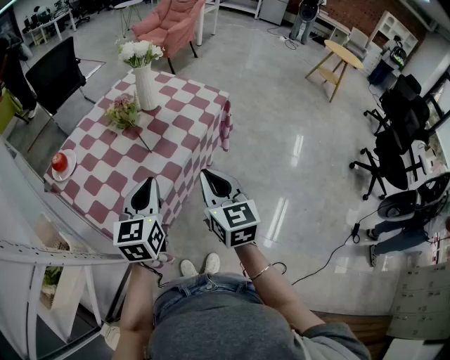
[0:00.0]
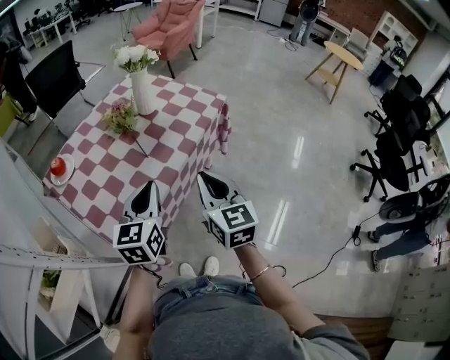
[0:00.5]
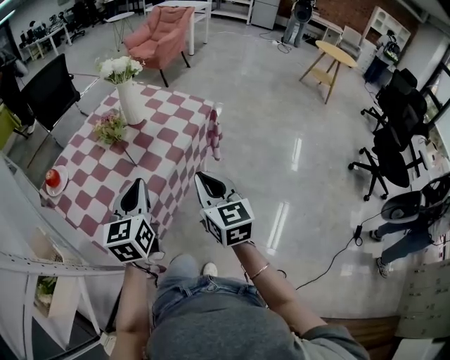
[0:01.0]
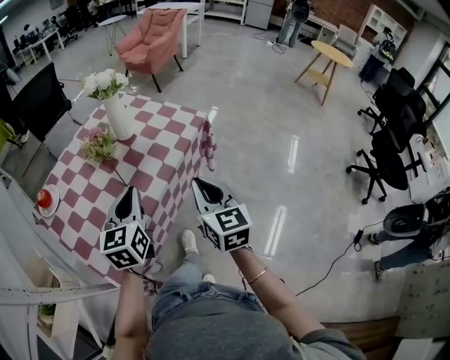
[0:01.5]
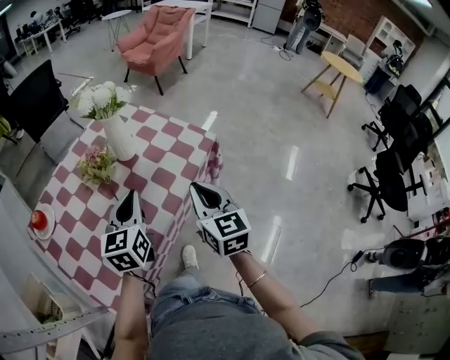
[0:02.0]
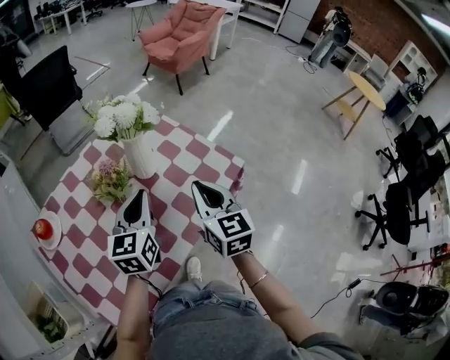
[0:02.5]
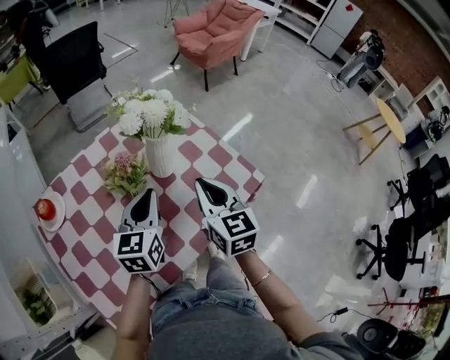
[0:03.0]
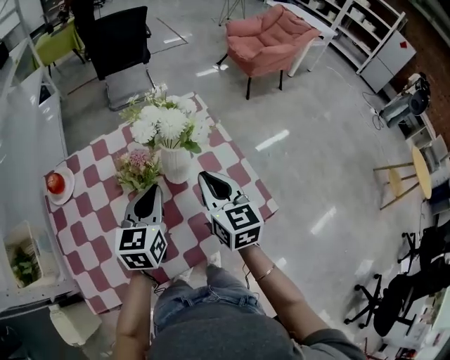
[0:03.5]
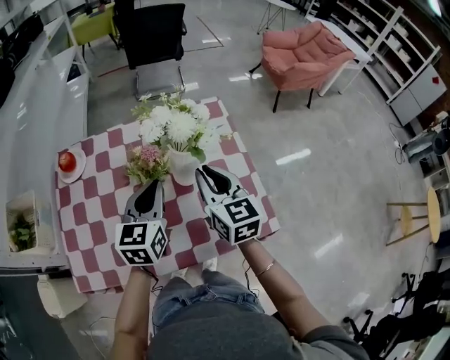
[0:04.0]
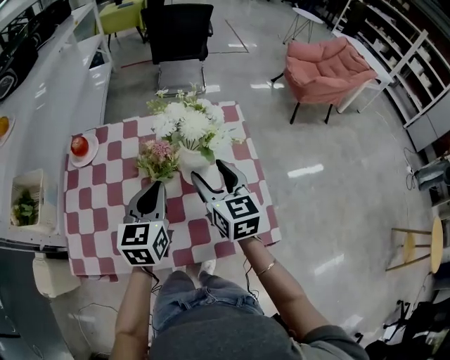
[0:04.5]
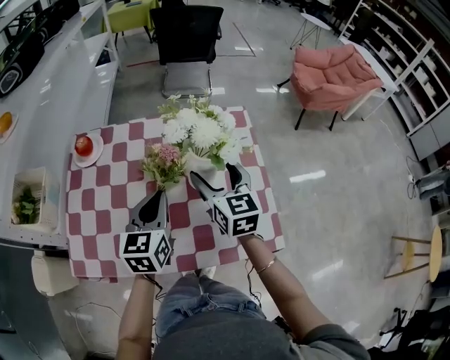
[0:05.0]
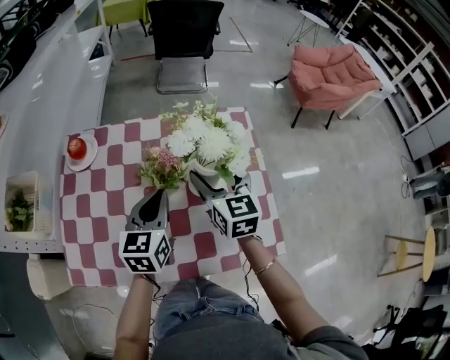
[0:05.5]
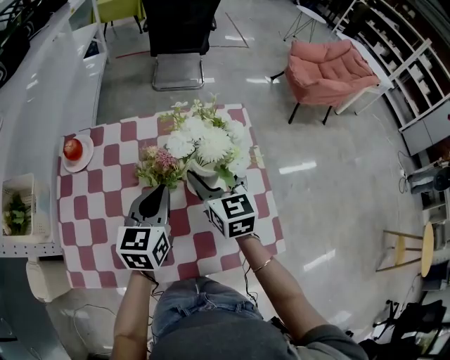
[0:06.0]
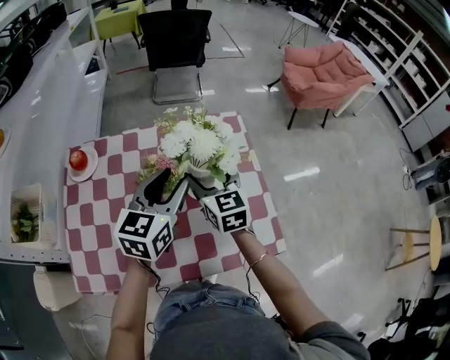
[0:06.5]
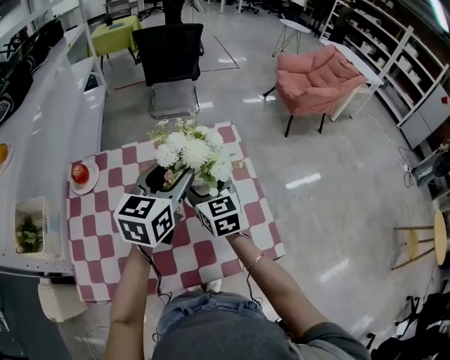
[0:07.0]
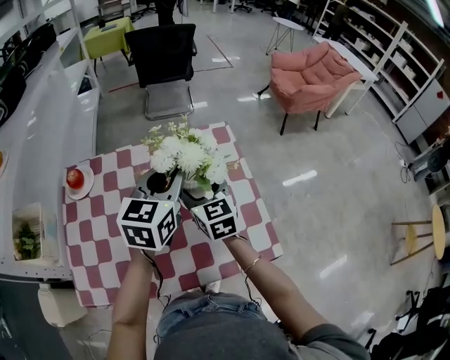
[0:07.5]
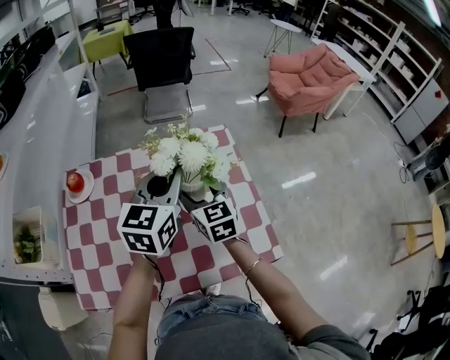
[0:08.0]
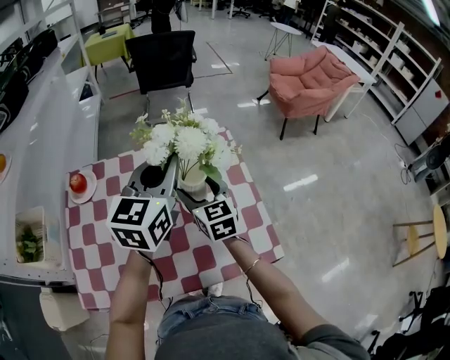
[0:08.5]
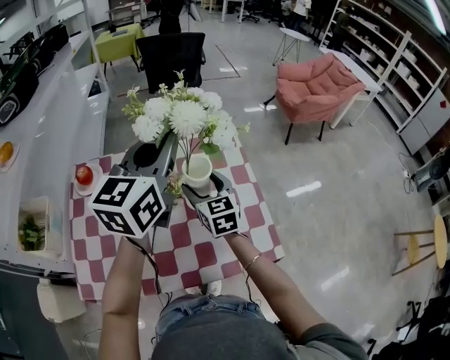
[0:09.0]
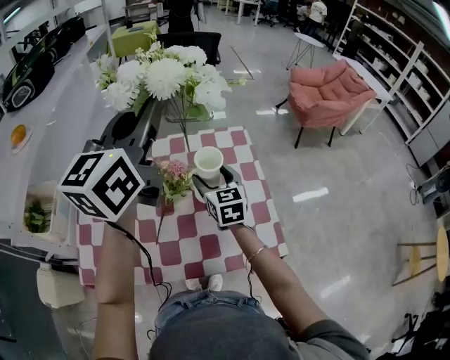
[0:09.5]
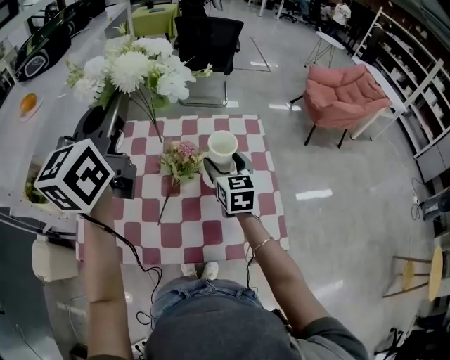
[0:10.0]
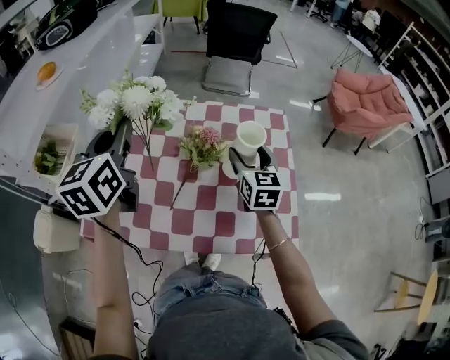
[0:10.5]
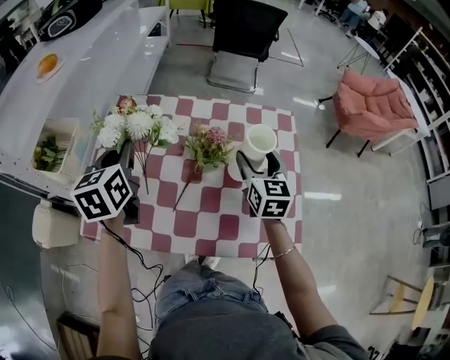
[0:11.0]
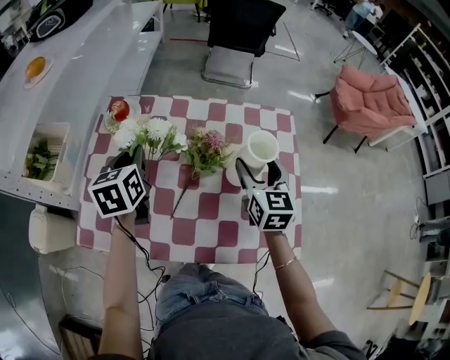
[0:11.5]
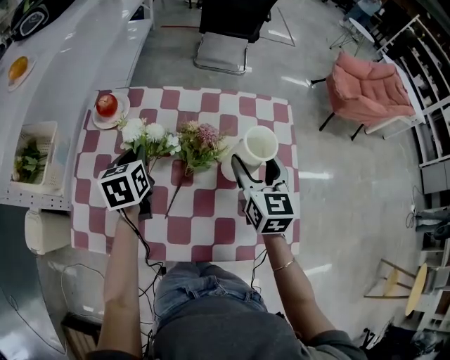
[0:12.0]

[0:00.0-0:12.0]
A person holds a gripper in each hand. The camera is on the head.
0:00.0 to 0:02.0: The two grippers go some 20 cm forward.
0:02.0 to 0:04.0: The left gripper ends up about 20 cm from where it was, and swivels some 30 degrees, while the right gripper shifts by some 30 cm, and rotates about 40 degrees.
0:04.0 to 0:06.0: The right gripper heads forward, covering approximately 10 cm, and opens.
0:06.0 to 0:08.0: The left gripper is displaced upward and to the right by some 15 cm, and opens, then closes once more.
0:08.0 to 0:10.0: The left gripper moves to the left and upward, approximately 25 cm, and changes its angle by about 30 degrees.
0:10.0 to 0:12.0: The left gripper goes some 35 cm downward, and tilts its fingers roughly 40 degrees downward.

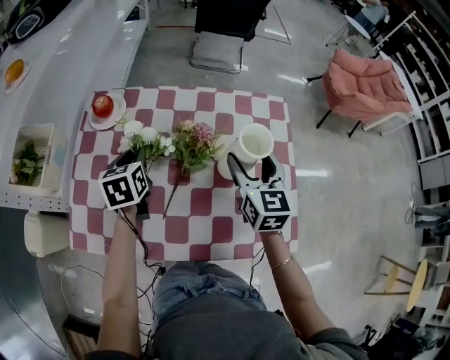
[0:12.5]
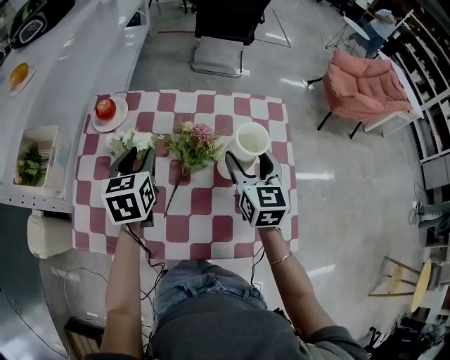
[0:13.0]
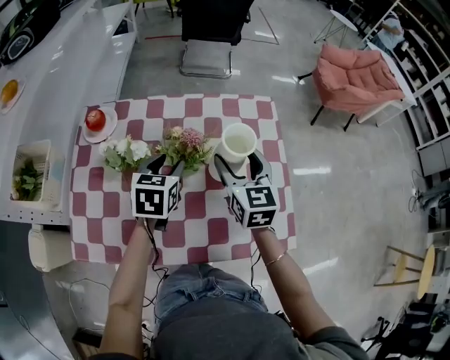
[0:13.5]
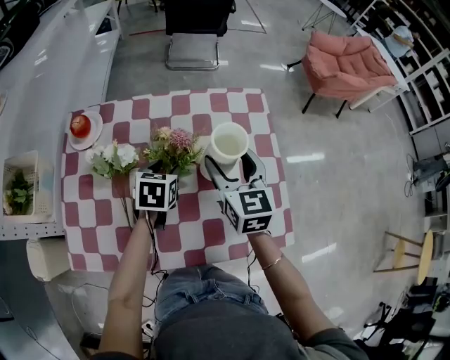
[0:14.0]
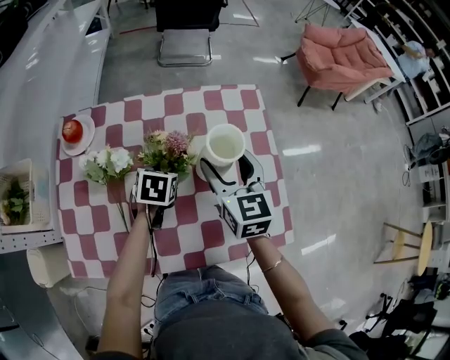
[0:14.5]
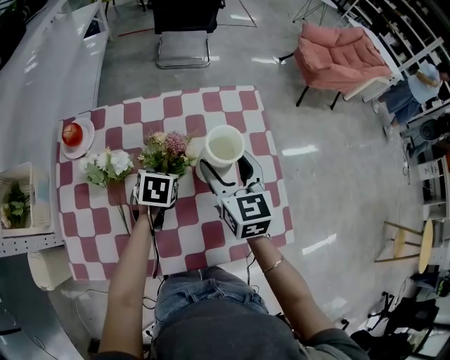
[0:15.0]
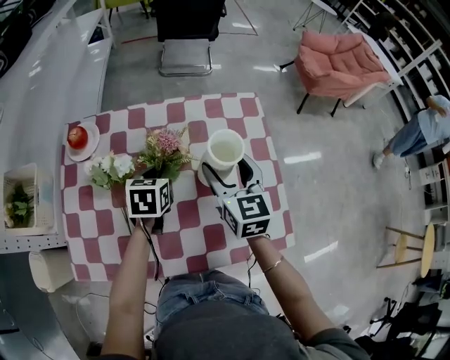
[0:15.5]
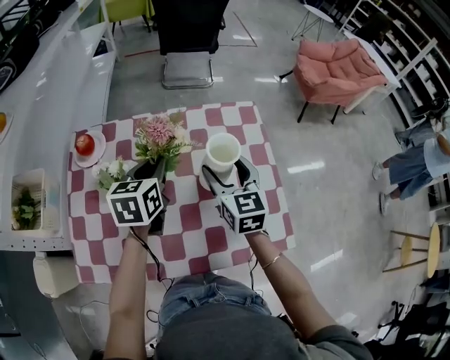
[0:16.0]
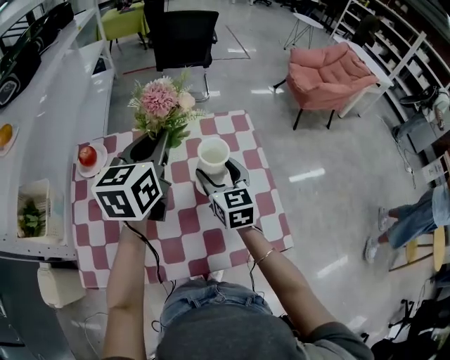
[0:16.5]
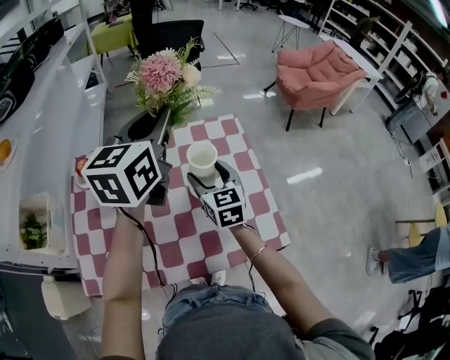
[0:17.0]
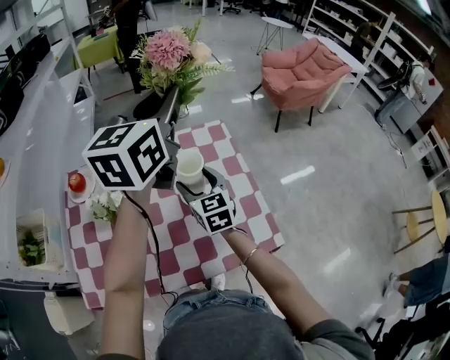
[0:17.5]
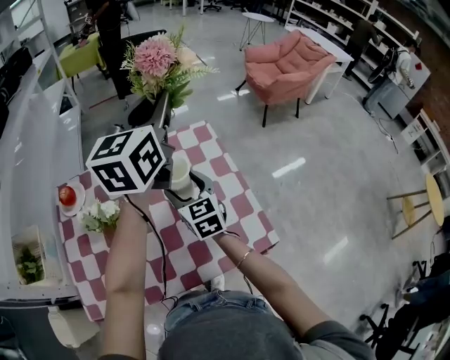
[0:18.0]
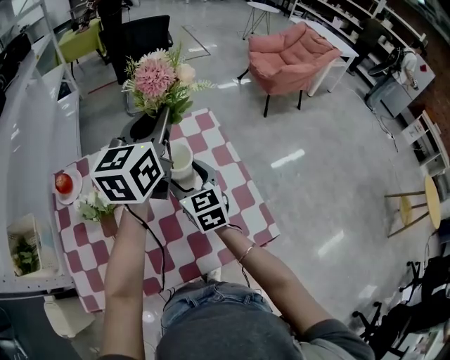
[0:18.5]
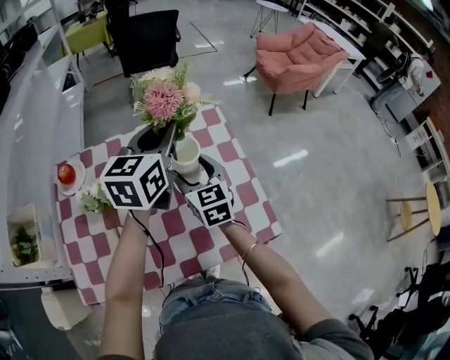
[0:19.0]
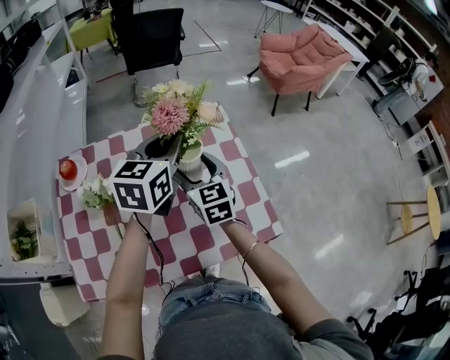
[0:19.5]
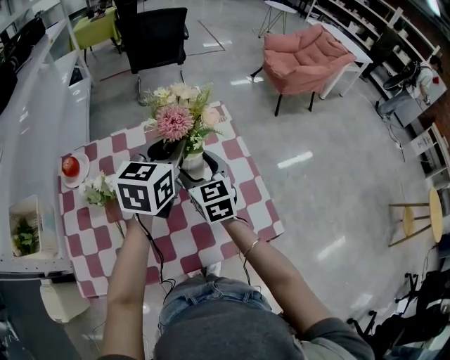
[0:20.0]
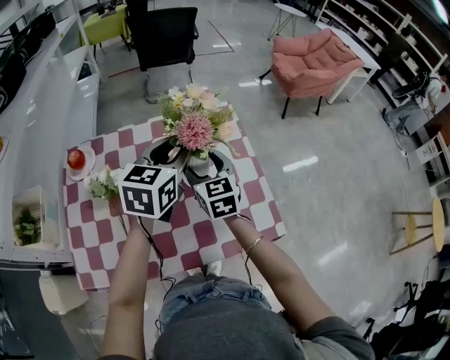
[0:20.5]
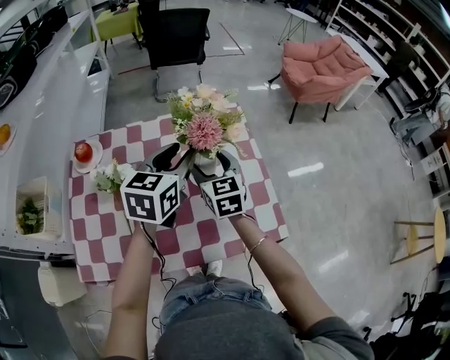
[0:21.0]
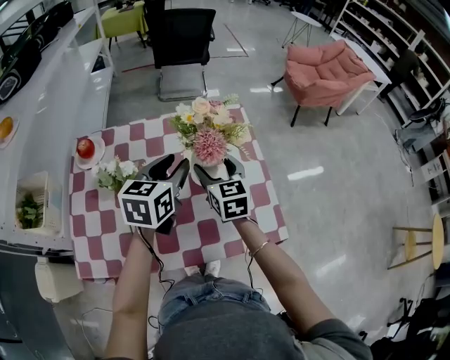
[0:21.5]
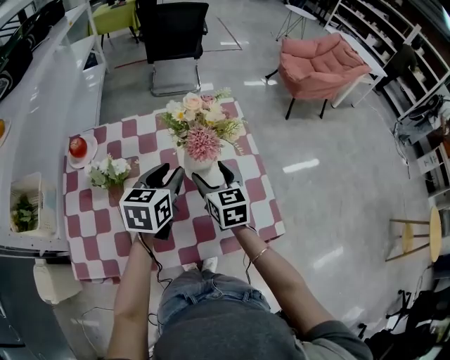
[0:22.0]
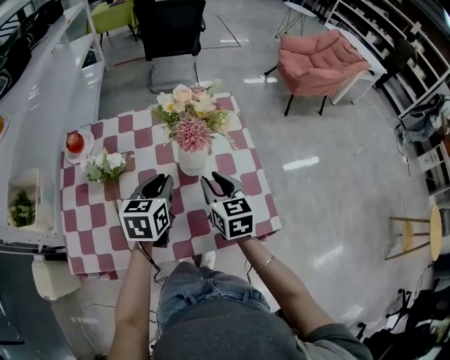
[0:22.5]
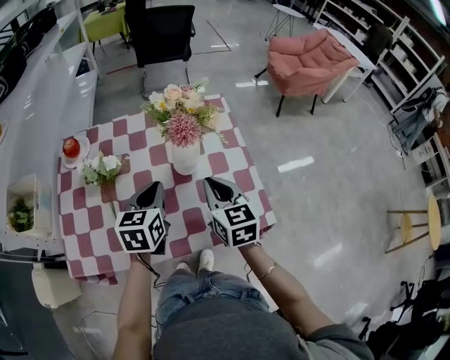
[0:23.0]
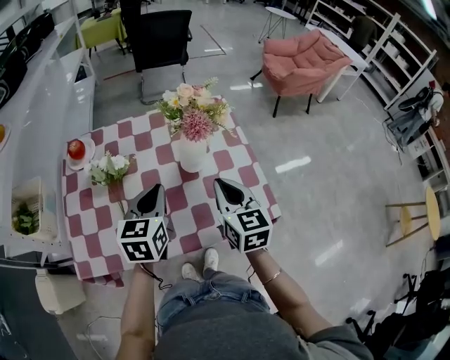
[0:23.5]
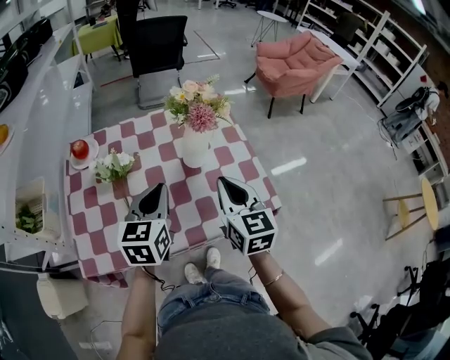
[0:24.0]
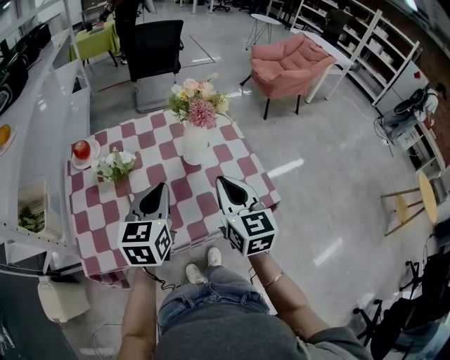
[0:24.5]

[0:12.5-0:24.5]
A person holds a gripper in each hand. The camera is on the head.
0:12.5 to 0:14.5: The left gripper moves to the right and downward, some 20 cm, rotates approximately 30 degrees, and opens.
0:14.5 to 0:16.5: The left gripper goes roughly 30 cm upward, tips its fingers upward by roughly 50 degrees, and closes.
0:16.5 to 0:18.5: The left gripper is displaced to the right and upward by roughly 10 cm.
0:18.5 to 0:20.5: The left gripper is displaced downward and backward by about 10 cm, and opens up.
0:20.5 to 0:22.5: The left gripper is displaced downward and backward by roughly 15 cm. The right gripper goes about 10 cm backward, and closes its fingers.
0:22.5 to 0:24.5: Both grippers travel together backward and upward, approximately 15 cm.

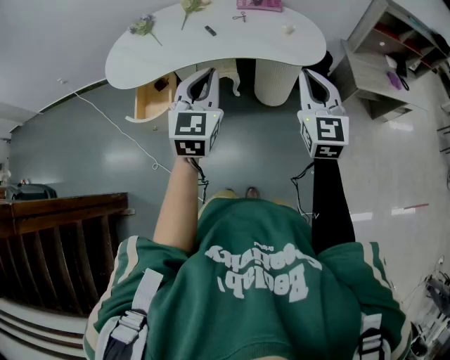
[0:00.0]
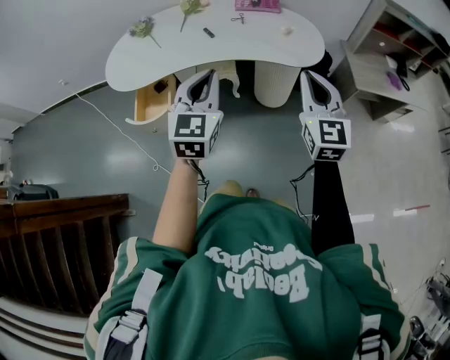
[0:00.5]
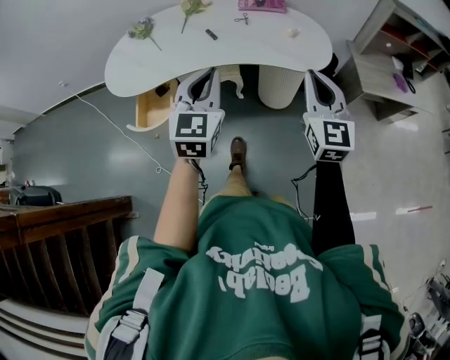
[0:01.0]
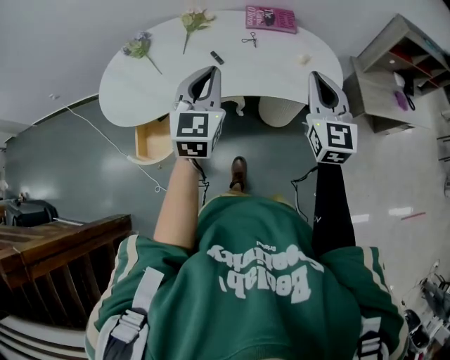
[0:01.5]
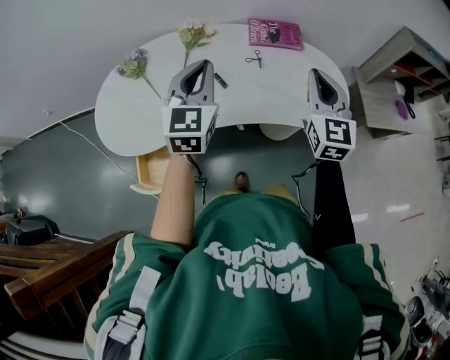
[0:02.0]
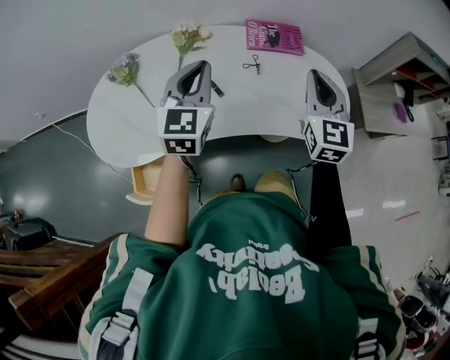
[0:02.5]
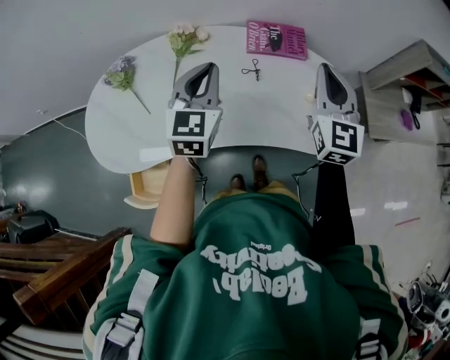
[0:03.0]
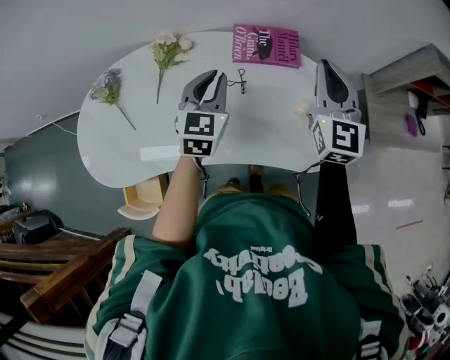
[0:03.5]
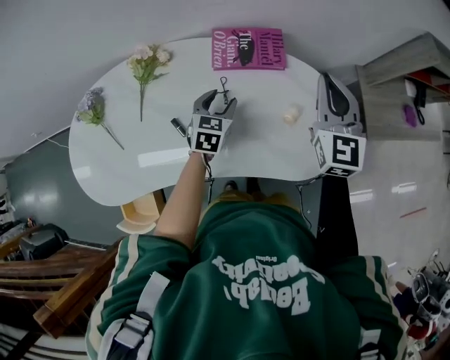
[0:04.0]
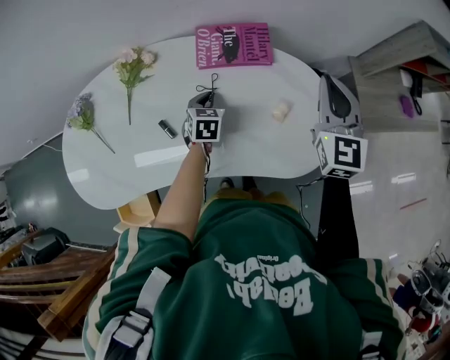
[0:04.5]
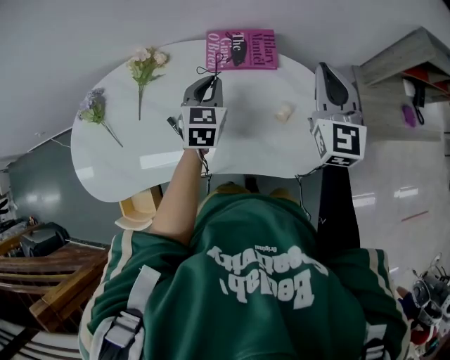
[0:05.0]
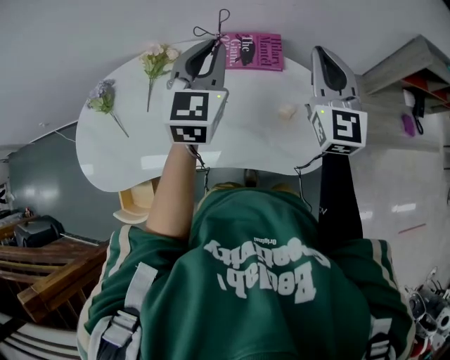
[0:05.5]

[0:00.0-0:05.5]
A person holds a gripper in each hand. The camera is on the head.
0:00.0 to 0:02.0: Both grippers move forward, some 30 cm.
0:02.0 to 0:03.5: The right gripper travels forward by about 20 cm, while the left gripper shifts roughly 25 cm forward, downward and to the right.
0:03.5 to 0:05.5: The left gripper shifts about 5 cm to the right, goes downward and returns, some 20 cm each way, and opens, then closes once more.
